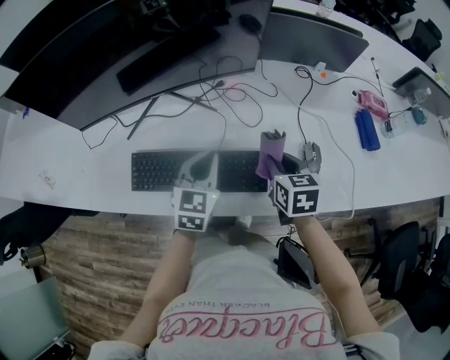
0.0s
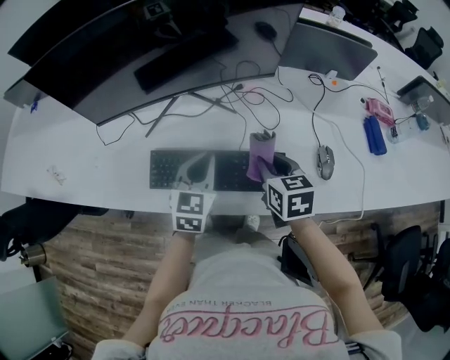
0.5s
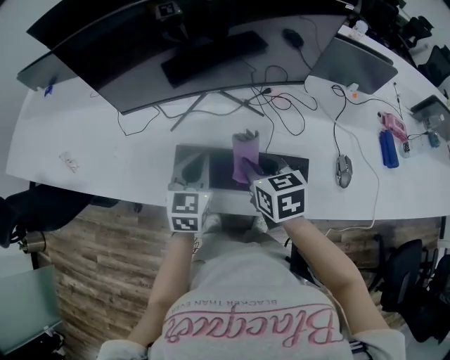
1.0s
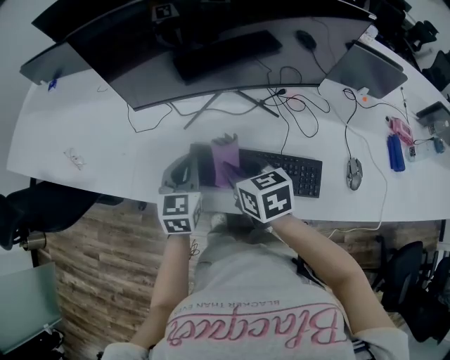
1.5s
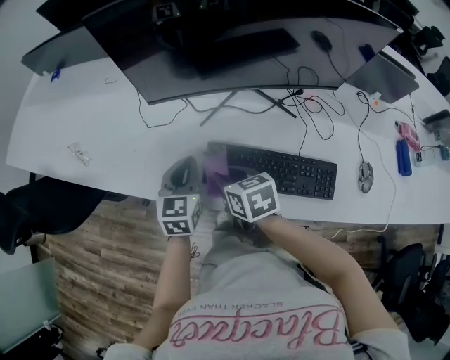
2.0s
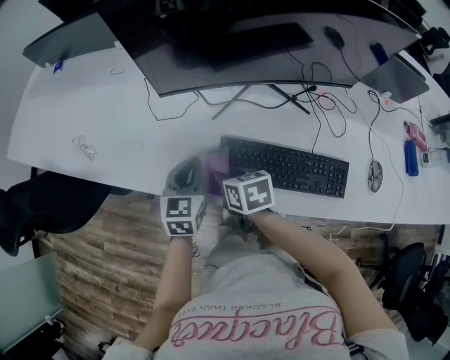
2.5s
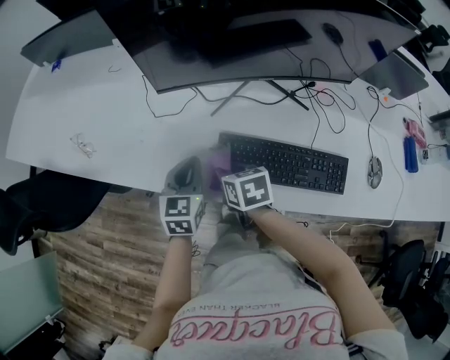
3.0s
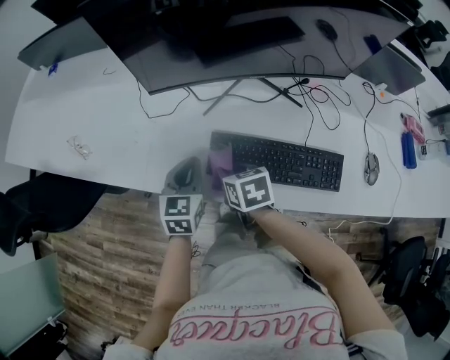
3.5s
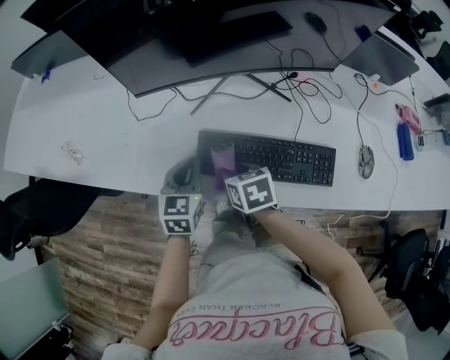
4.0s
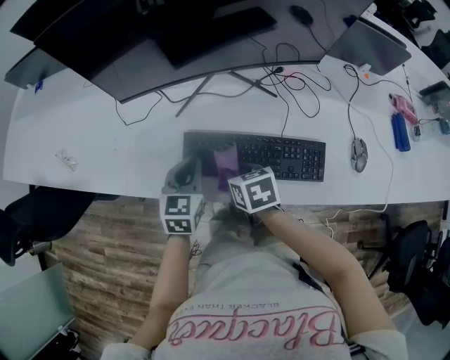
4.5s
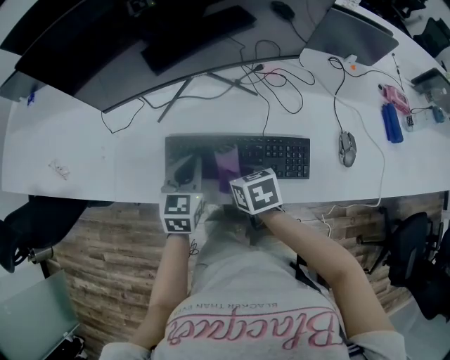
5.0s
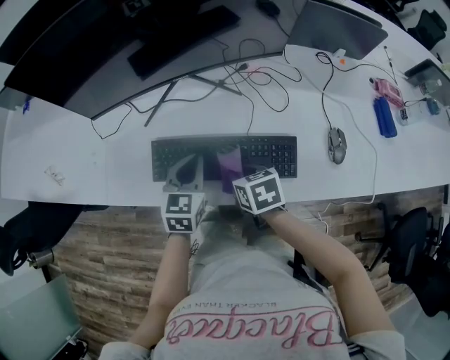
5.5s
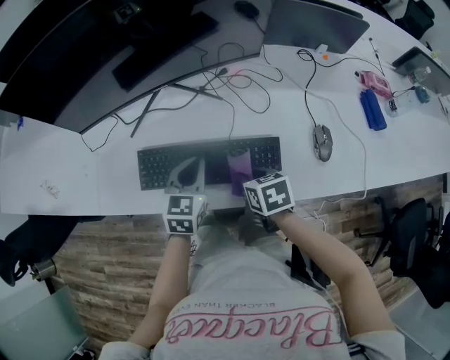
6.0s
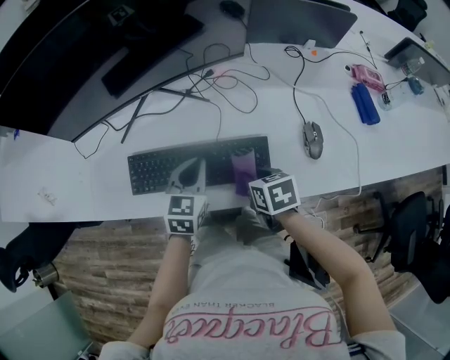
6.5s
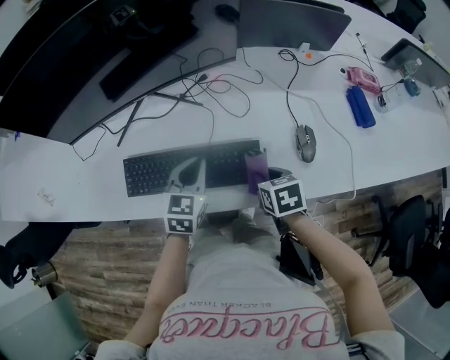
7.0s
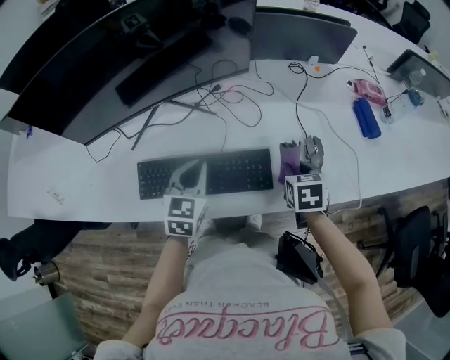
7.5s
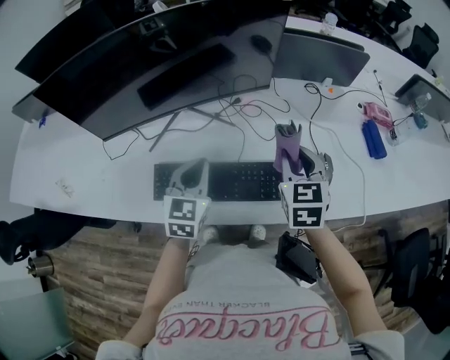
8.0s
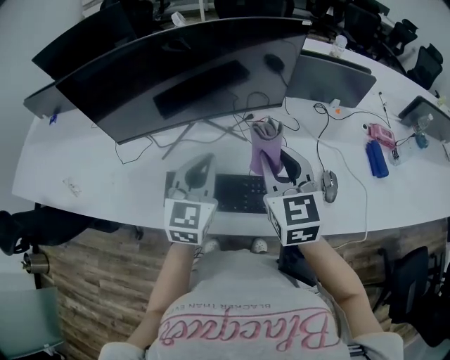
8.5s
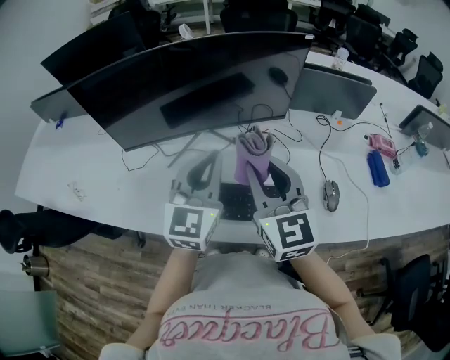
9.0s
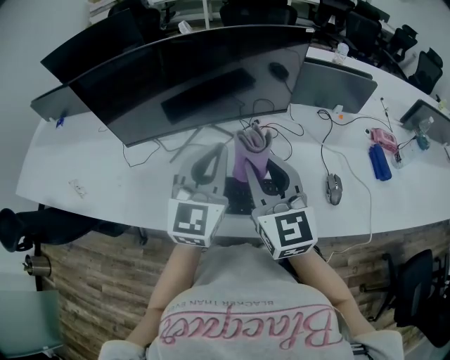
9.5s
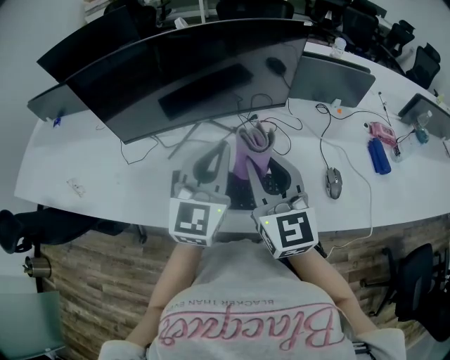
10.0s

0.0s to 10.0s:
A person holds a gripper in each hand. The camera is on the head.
0.0s to 2.0s: The left gripper shifts by about 35 cm, and swivels approximately 20 degrees, while the right gripper ends up roughly 40 cm from where it was, and changes its angle by approximately 30 degrees.
2.0s to 4.0s: The right gripper moves roughly 5 cm.
4.0s to 6.0s: The two grippers go roughly 20 cm to the right.
6.0s to 8.0s: The right gripper shifts some 20 cm upward, to the right and forward, and swivels about 40 degrees, while the left gripper moves upward, approximately 10 cm.
8.0s to 10.0s: The left gripper goes roughly 15 cm upward, and changes its angle by roughly 20 degrees. The right gripper is displaced to the left and upward by roughly 20 cm, and rotates about 30 degrees.

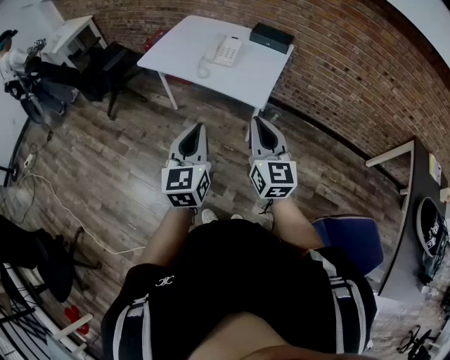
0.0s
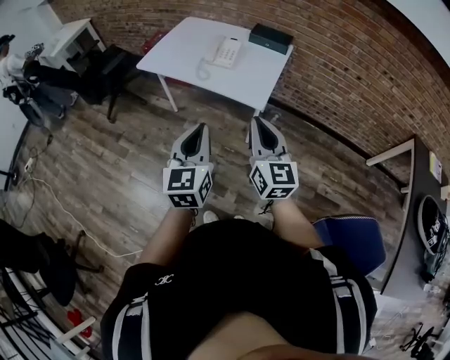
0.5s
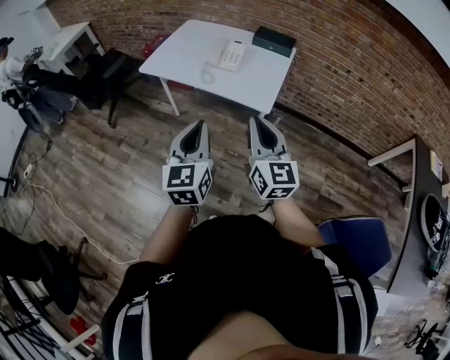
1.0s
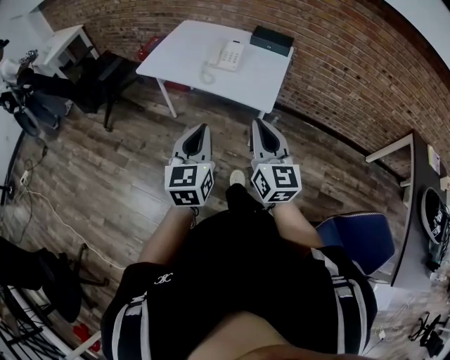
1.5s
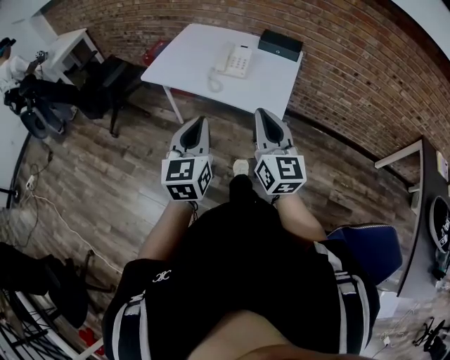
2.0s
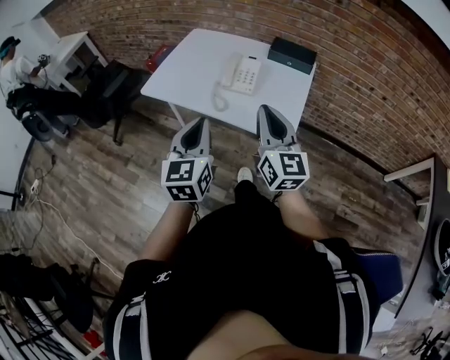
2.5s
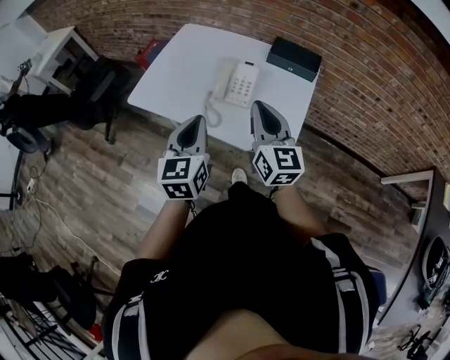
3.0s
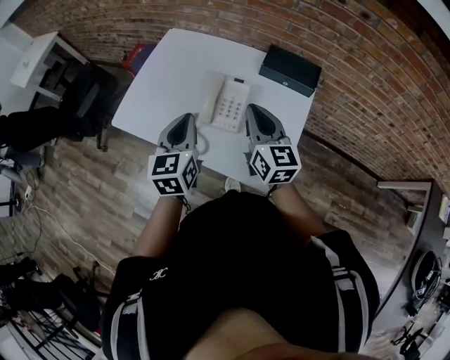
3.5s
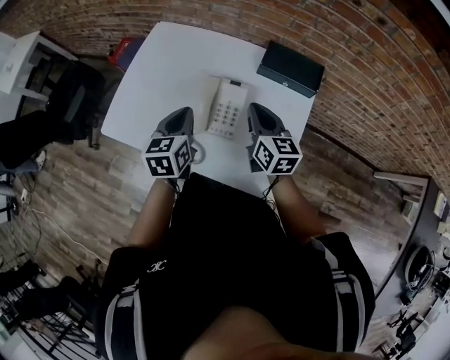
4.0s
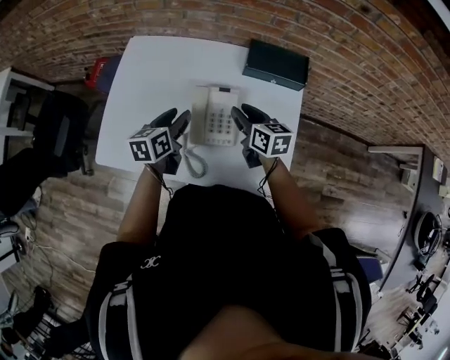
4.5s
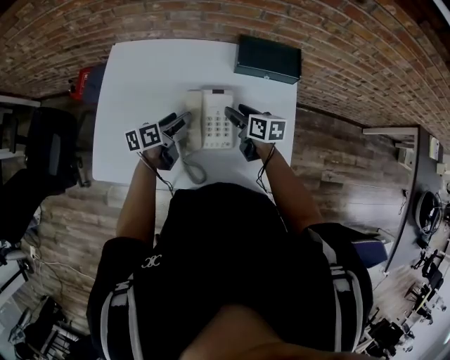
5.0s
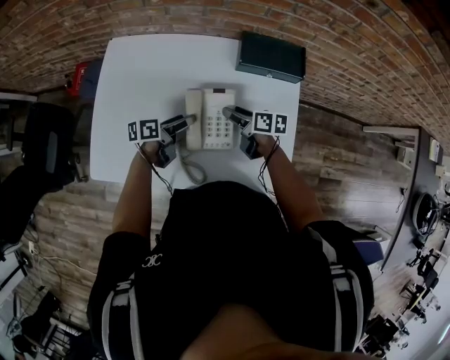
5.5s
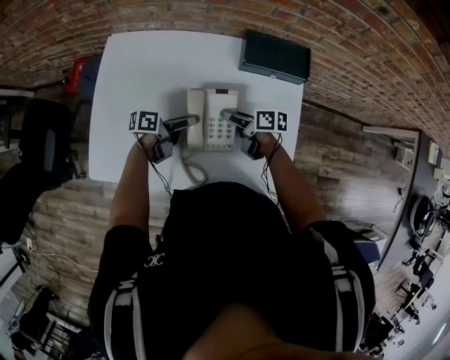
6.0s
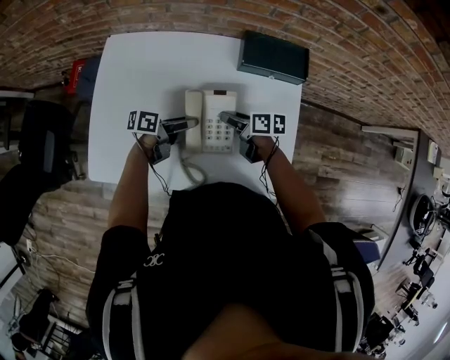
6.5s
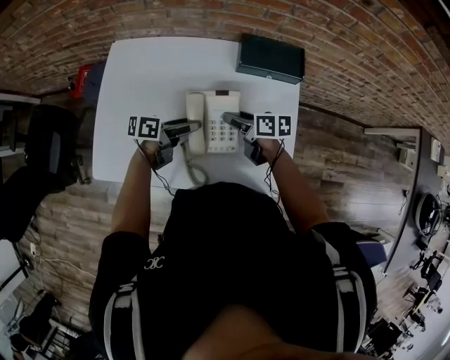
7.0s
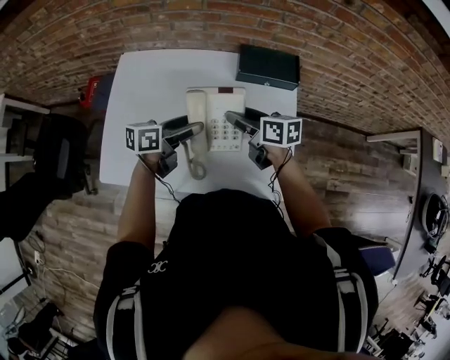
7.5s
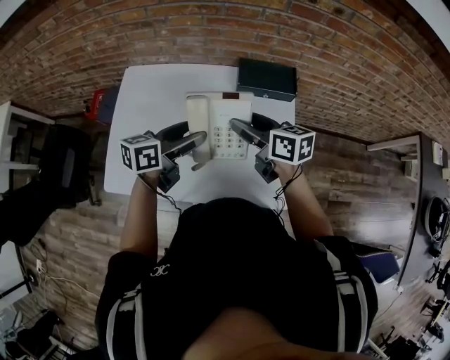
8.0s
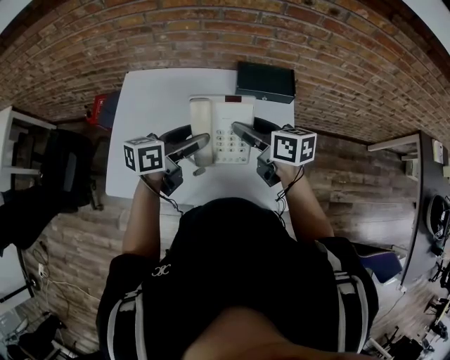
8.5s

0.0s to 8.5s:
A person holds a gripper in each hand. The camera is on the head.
0.0s to 2.0s: The grippers both shift forward and to the left by approximately 10 cm.
2.0s to 4.0s: The two grippers travel together, forward, approximately 50 cm. The right gripper changes its angle by about 30 degrees, while the left gripper changes its angle by roughly 30 degrees.
4.0s to 6.5s: Both grippers travel together downward, roughly 20 cm. The left gripper swivels some 70 degrees, and opens up. The right gripper swivels about 50 degrees, and opens its fingers.
6.5s to 8.5s: The grippers both shift upward by approximately 20 cm. The right gripper rotates roughly 20 degrees. Meanwhile the left gripper turns by roughly 30 degrees.

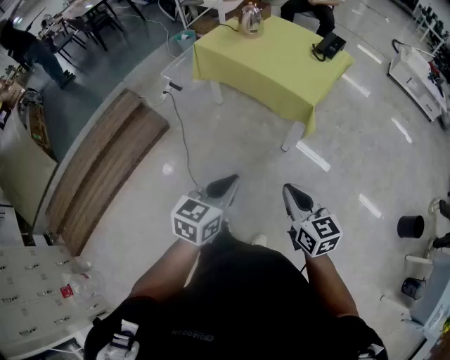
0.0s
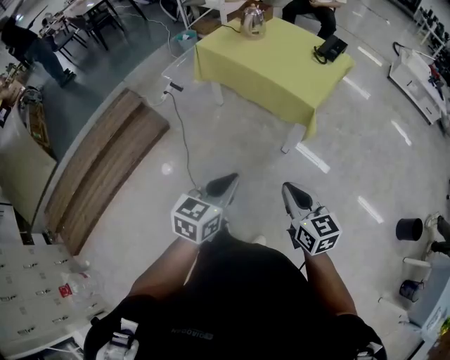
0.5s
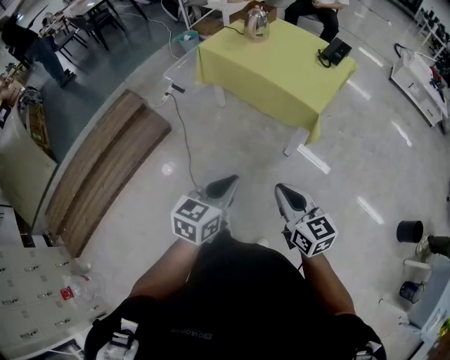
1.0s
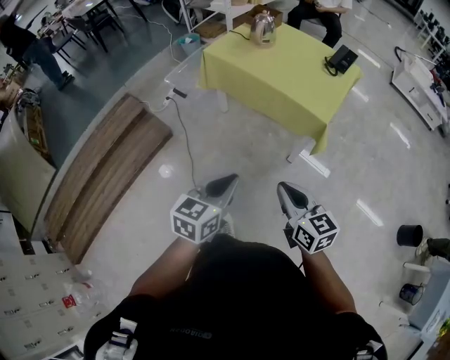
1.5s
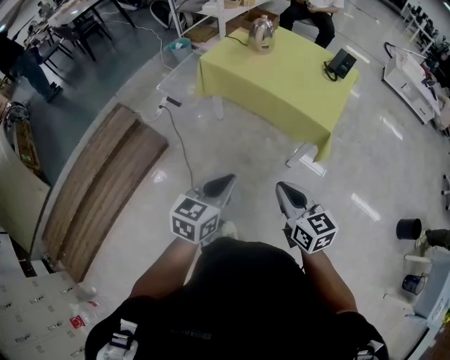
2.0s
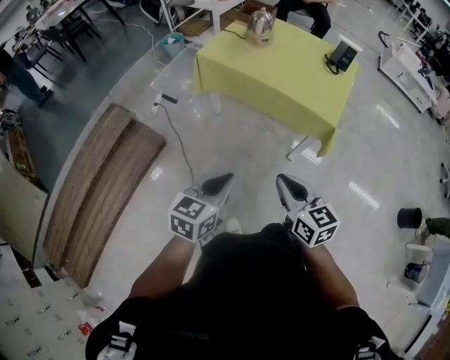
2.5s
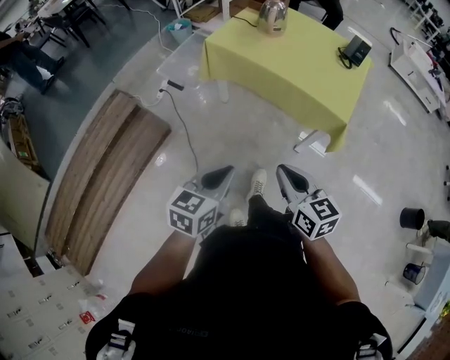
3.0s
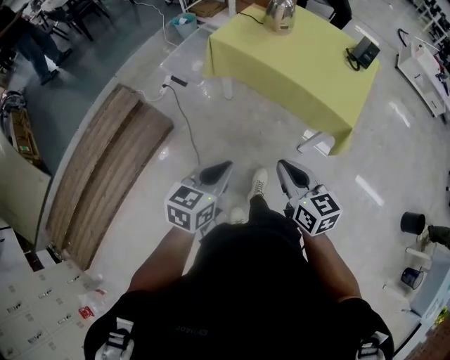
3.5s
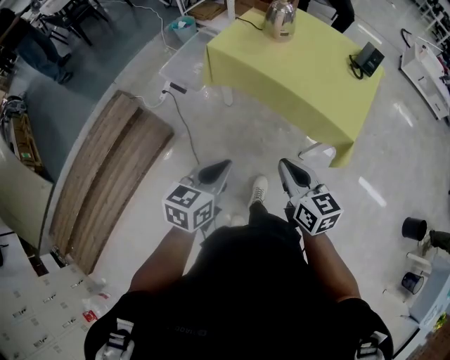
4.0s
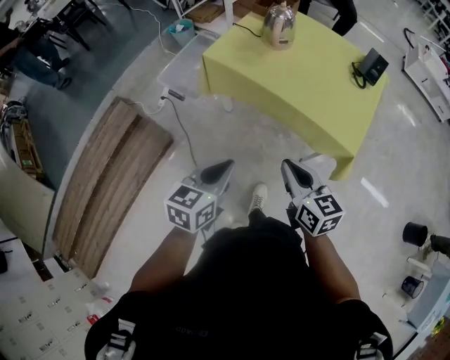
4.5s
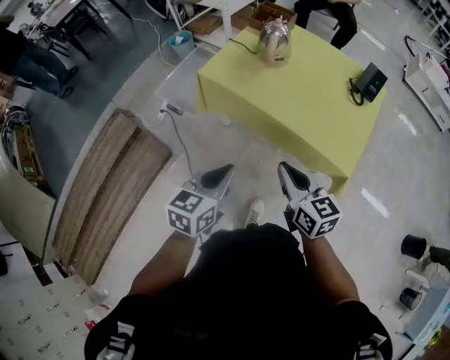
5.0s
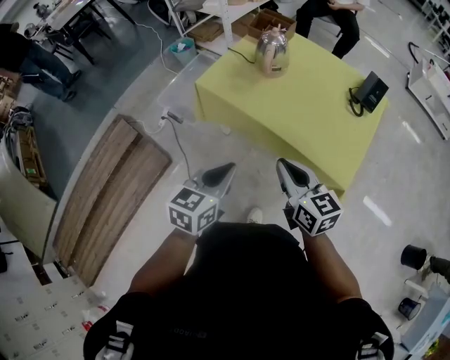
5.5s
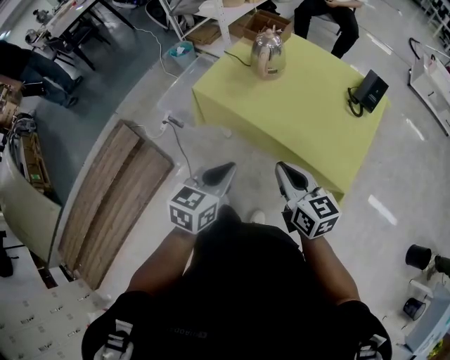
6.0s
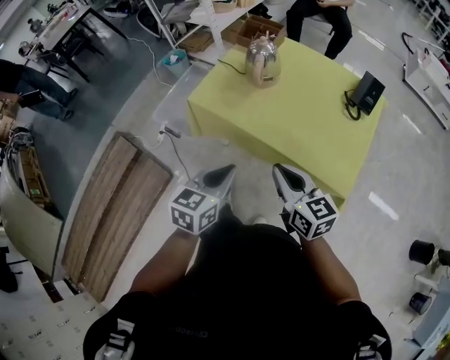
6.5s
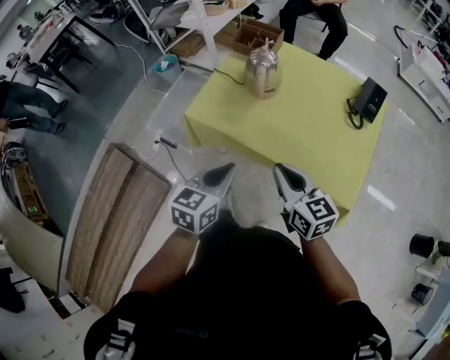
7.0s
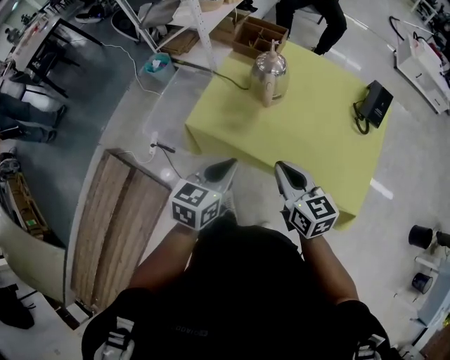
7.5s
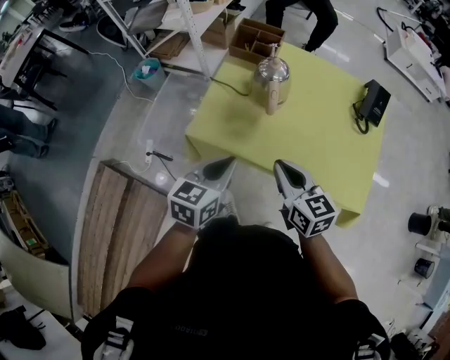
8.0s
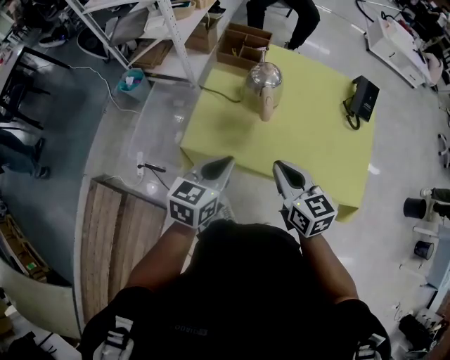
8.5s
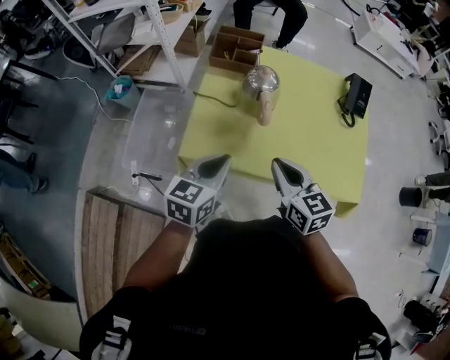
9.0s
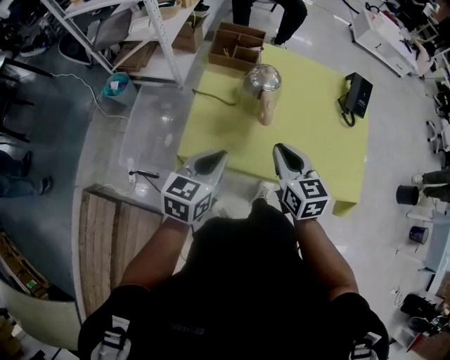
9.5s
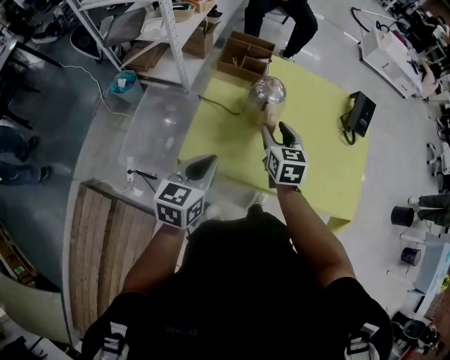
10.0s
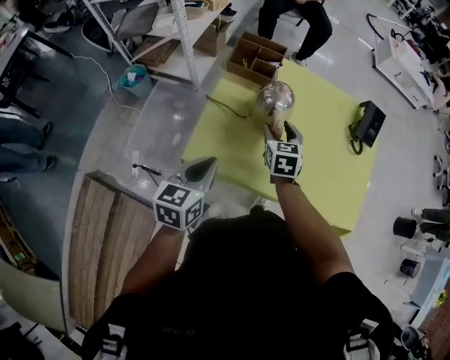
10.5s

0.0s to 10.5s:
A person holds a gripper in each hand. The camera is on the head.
0.0s to 2.0s: The left gripper goes roughly 20 cm forward and to the left. The right gripper shifts some 20 cm to the left and forward.
2.0s to 4.0s: The right gripper goes roughly 15 cm forward, while the left gripper goes some 15 cm forward and to the left.
4.0s to 6.5s: Both grippers travel together forward, roughly 25 cm.
6.5s to 8.5s: The two grippers go roughly 25 cm forward and to the left.
8.5s to 10.5s: The left gripper moves to the left and forward, roughly 10 cm. Meanwhile the right gripper is displaced forward and downward by roughly 25 cm, changes its angle by approximately 30 degrees, and opens up.
